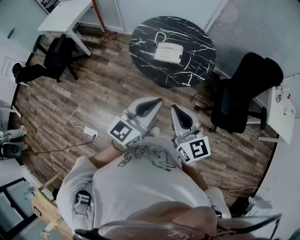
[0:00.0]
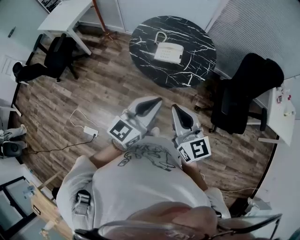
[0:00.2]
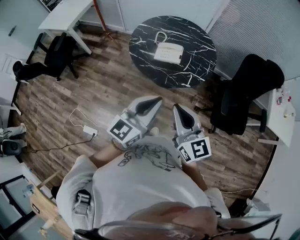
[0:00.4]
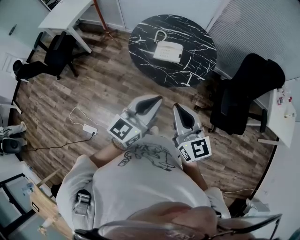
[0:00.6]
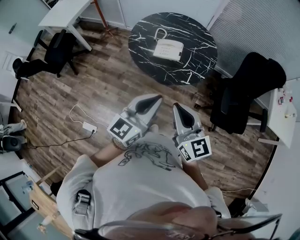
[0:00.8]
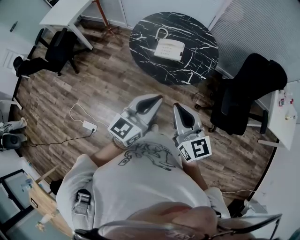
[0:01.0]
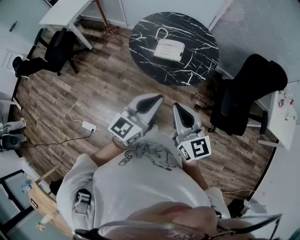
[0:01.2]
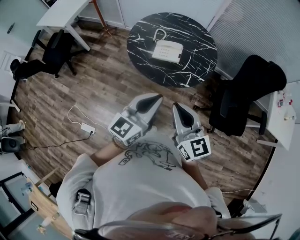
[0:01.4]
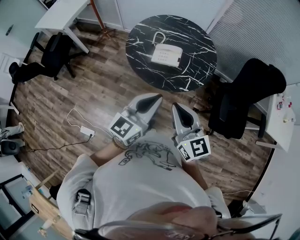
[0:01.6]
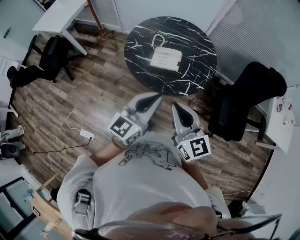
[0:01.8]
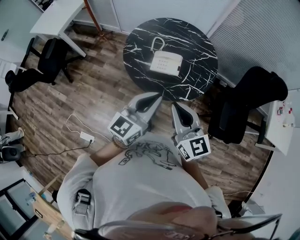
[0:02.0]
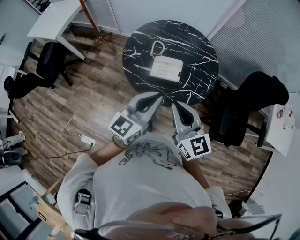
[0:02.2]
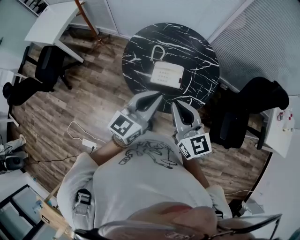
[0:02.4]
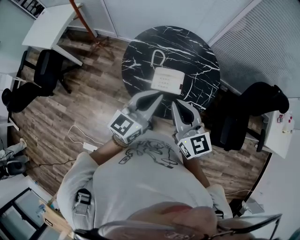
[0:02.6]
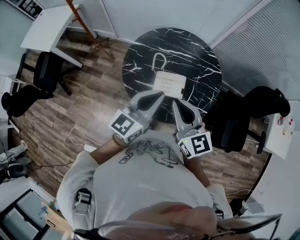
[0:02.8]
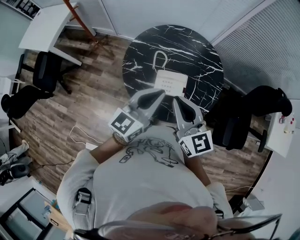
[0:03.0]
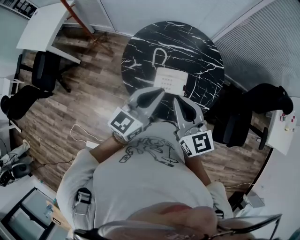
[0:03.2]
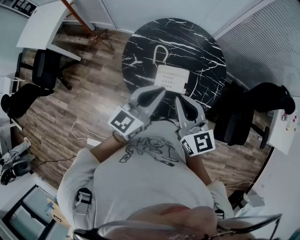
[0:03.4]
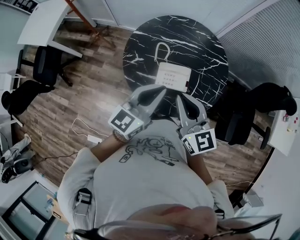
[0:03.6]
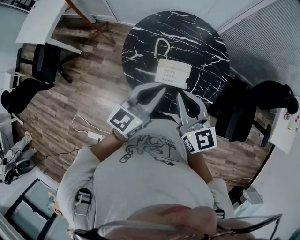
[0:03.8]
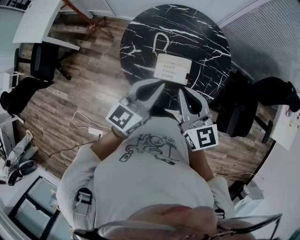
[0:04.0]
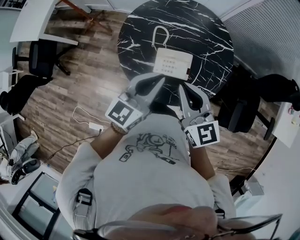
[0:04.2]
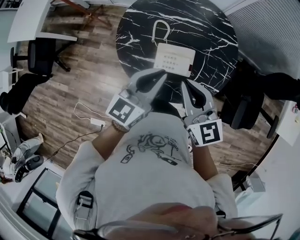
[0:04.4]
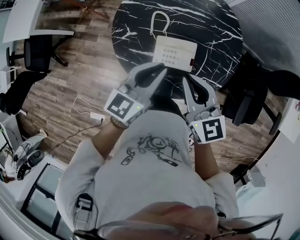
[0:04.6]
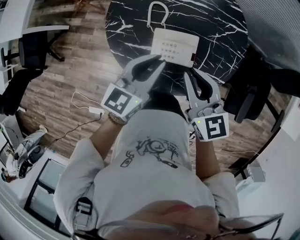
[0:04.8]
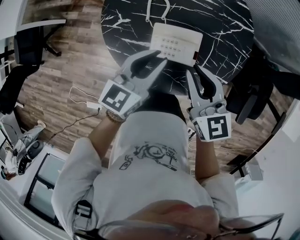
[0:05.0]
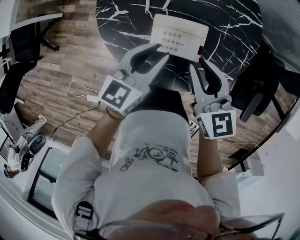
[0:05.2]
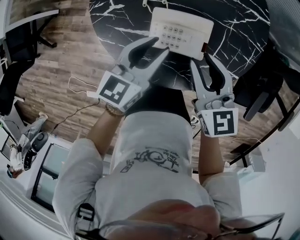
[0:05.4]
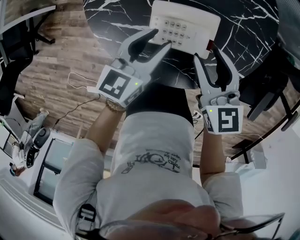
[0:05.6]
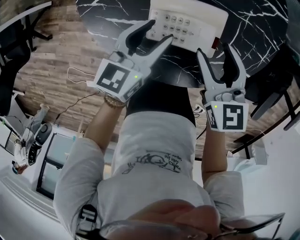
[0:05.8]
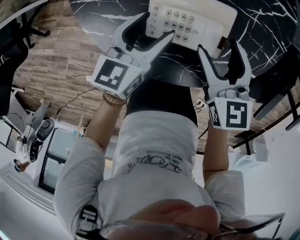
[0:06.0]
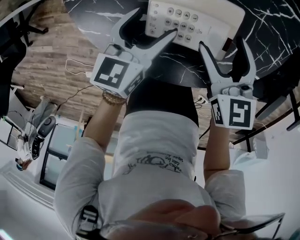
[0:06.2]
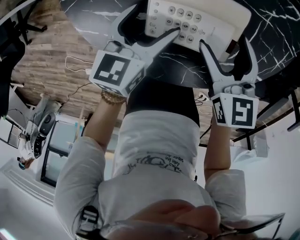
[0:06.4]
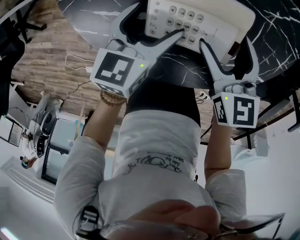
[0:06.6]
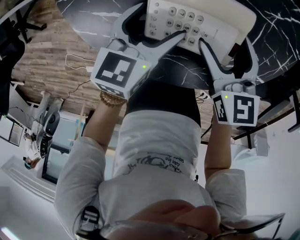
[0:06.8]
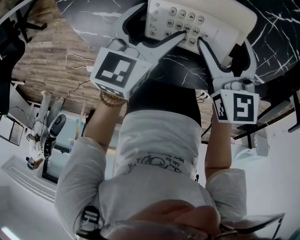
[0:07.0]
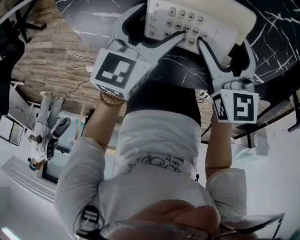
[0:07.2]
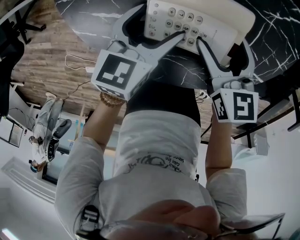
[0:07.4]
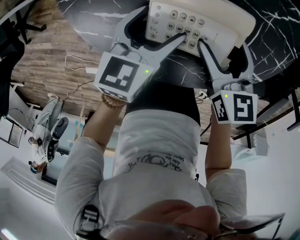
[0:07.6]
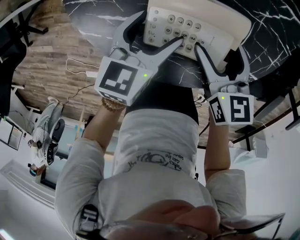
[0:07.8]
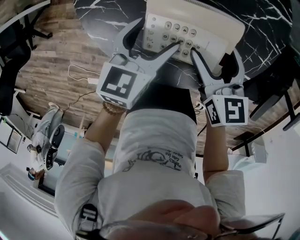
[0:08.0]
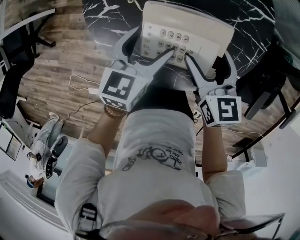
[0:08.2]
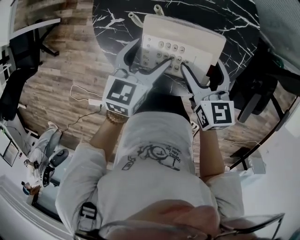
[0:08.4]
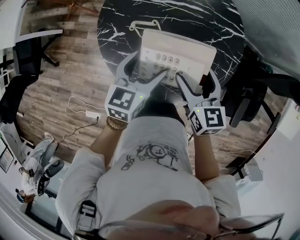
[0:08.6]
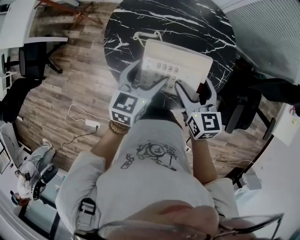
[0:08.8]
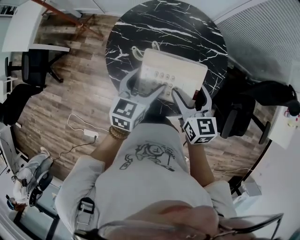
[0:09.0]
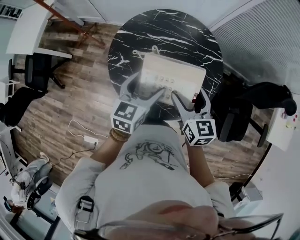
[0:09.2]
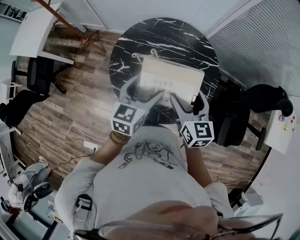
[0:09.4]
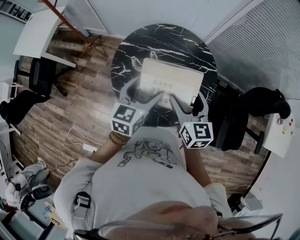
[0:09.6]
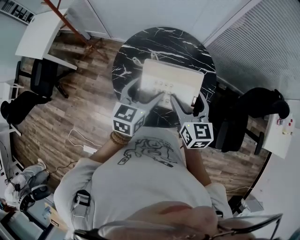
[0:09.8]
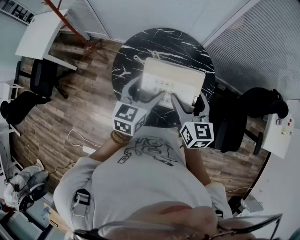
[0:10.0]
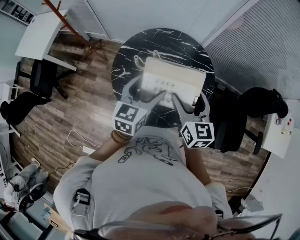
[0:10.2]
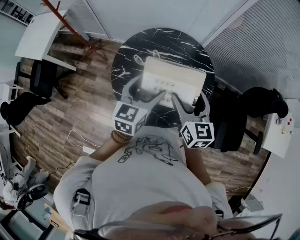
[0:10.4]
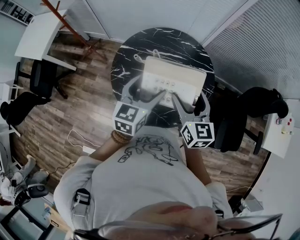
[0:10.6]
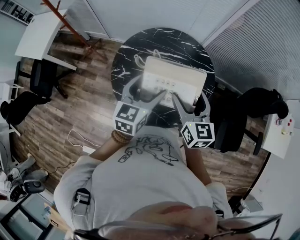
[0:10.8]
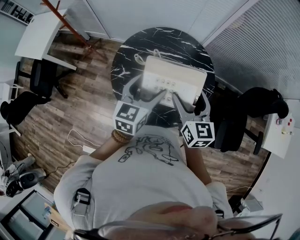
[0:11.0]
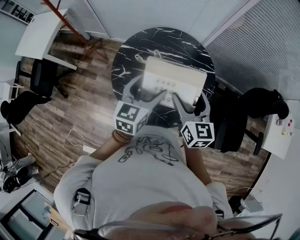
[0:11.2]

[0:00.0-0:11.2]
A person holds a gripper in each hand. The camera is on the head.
0.0 to 1.6 s: Both grippers travel together forward, about 10 cm.
1.6 to 3.2 s: Both grippers move forward, about 35 cm.
3.2 to 4.8 s: The two grippers go roughly 20 cm downward and forward.
4.8 to 6.4 s: Both grippers move downward, roughly 30 cm. The right gripper swivels approximately 20 degrees, and opens up. The left gripper changes its angle by roughly 20 degrees, and opens.
6.4 to 8.0 s: Both grippers travel together upward, roughly 5 cm.
8.0 to 9.6 s: Both grippers move upward, roughly 35 cm.
9.6 to 11.2 s: There are only small adjustments of the grippers.

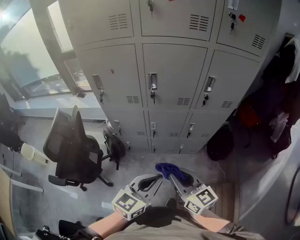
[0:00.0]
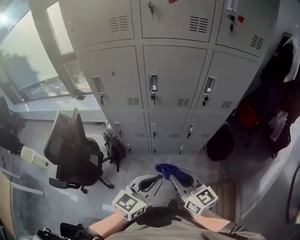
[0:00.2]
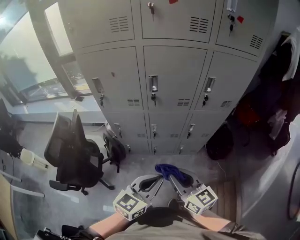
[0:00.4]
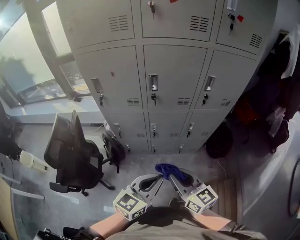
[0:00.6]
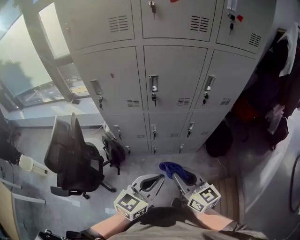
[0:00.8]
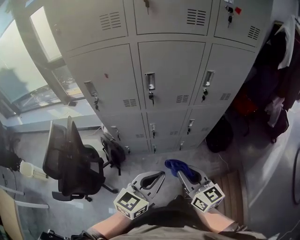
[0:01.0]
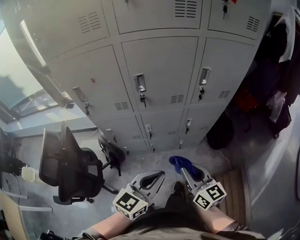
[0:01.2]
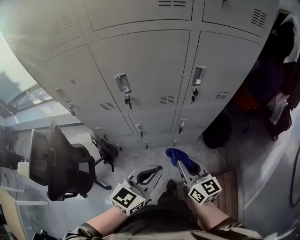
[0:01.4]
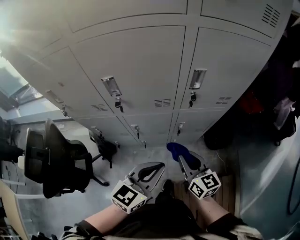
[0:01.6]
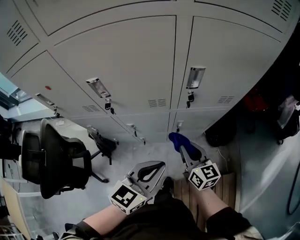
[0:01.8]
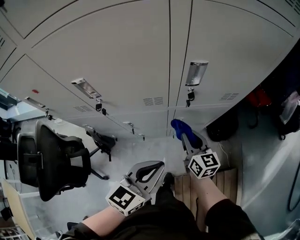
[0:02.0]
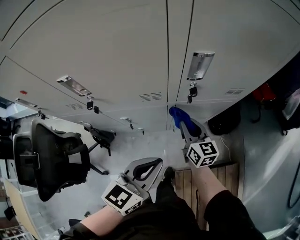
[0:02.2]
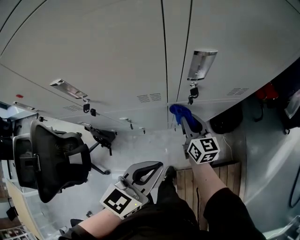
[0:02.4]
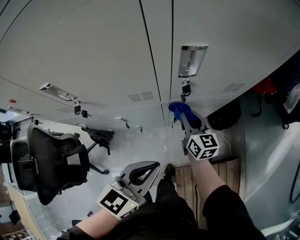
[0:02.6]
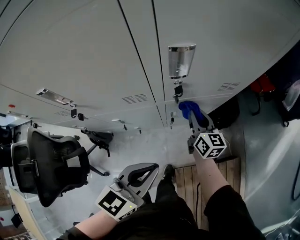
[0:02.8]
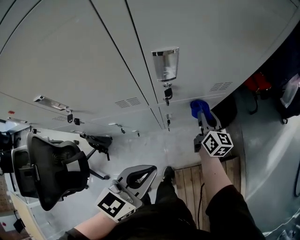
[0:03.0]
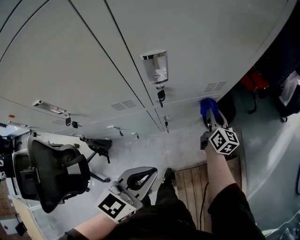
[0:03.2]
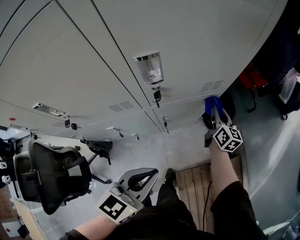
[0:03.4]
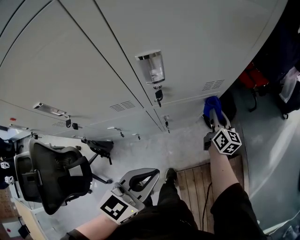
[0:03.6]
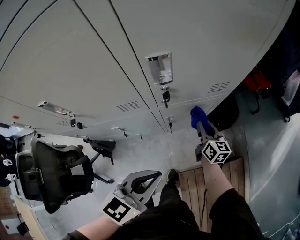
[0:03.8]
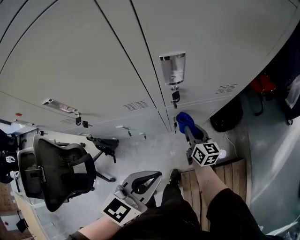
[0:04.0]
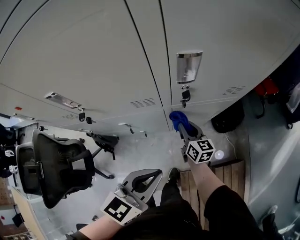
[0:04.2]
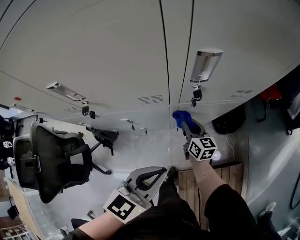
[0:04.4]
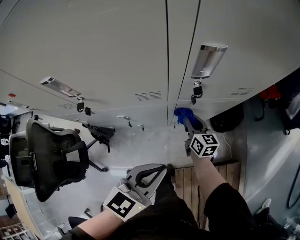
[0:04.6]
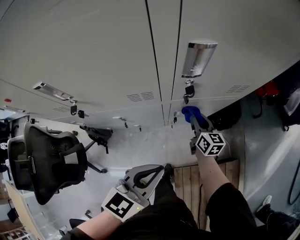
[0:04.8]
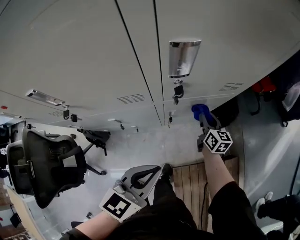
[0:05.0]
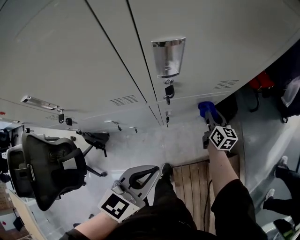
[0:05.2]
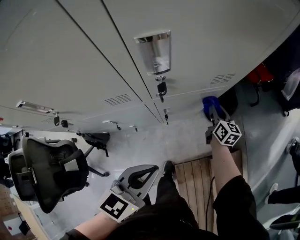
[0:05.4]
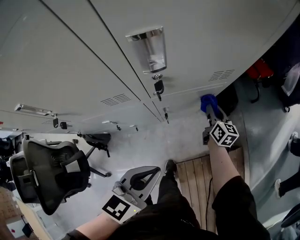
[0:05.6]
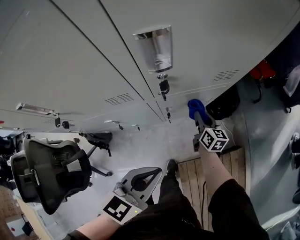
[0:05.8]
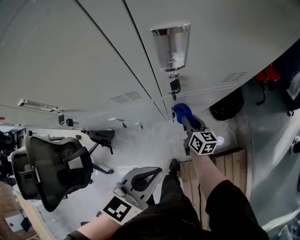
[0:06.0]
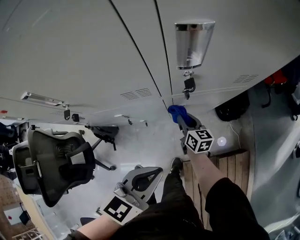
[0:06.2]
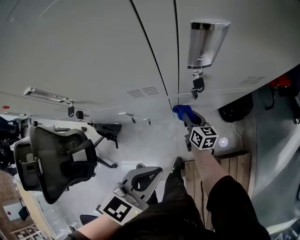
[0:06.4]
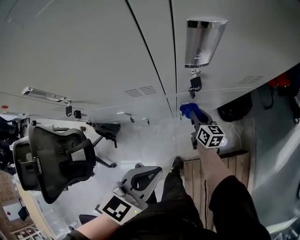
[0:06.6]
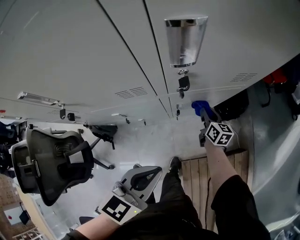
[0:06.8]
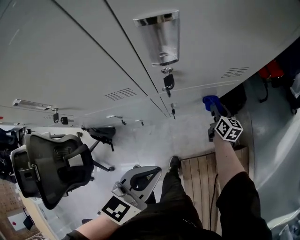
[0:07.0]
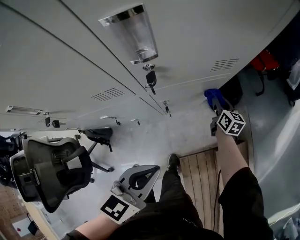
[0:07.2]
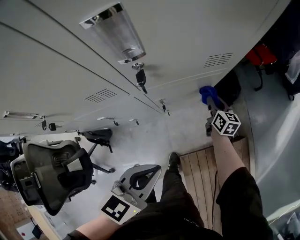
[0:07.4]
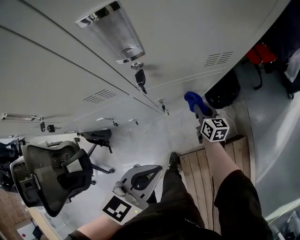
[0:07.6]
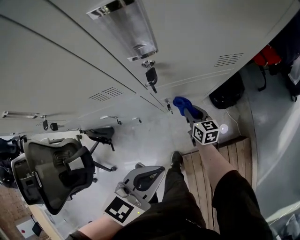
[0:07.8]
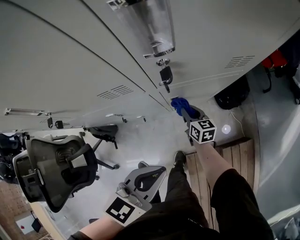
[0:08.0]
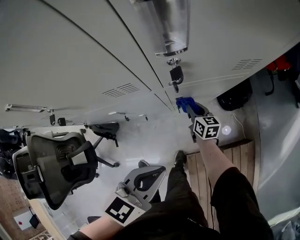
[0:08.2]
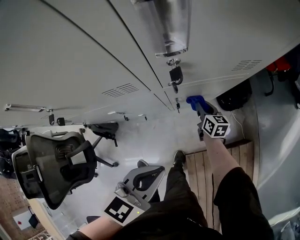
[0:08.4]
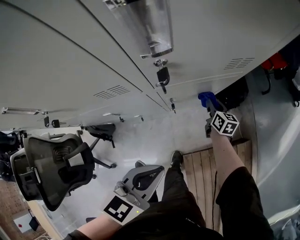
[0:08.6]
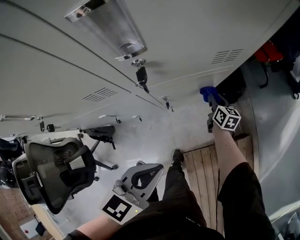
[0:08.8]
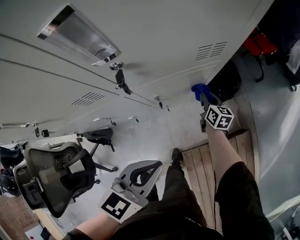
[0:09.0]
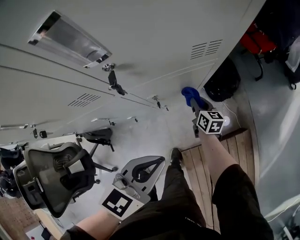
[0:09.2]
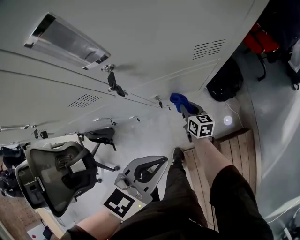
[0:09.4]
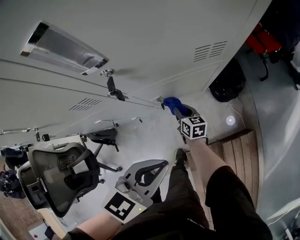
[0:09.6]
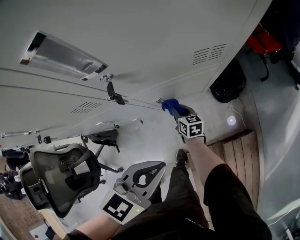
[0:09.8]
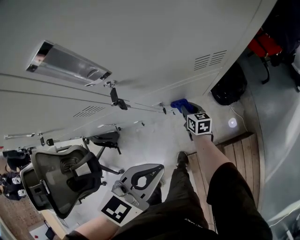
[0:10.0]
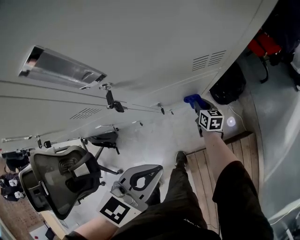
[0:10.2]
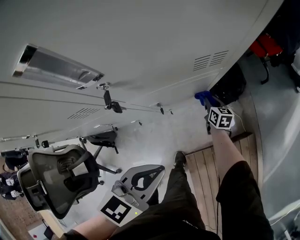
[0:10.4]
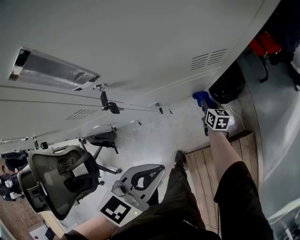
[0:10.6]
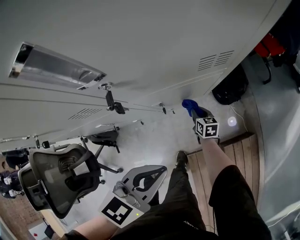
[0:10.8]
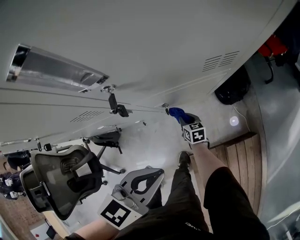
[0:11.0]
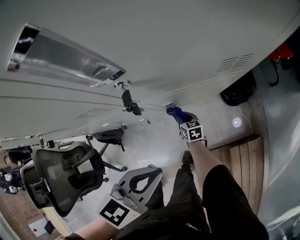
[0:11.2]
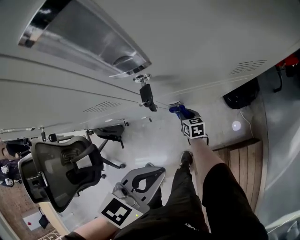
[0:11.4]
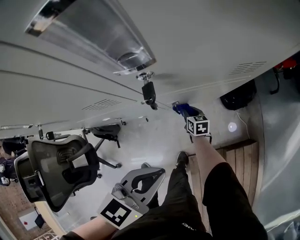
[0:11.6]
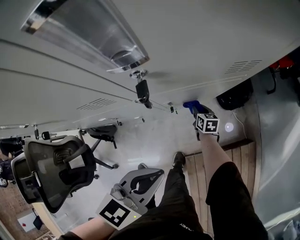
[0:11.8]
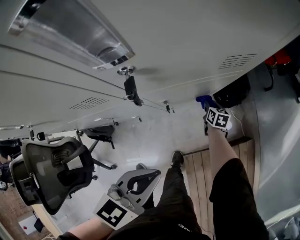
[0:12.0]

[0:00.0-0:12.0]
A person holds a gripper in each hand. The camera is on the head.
0.0 to 1.6 s: The right gripper goes roughly 25 cm forward, to the right and downward, while the left gripper moves forward and to the right, about 20 cm.
1.6 to 3.0 s: The left gripper goes some 10 cm forward and downward; the right gripper travels forward, to the right and downward by roughly 30 cm, and rotates approximately 20 degrees.
3.0 to 4.4 s: The right gripper travels to the left, downward and backward by some 15 cm.
4.4 to 6.0 s: The right gripper shifts some 5 cm downward, and moves some 20 cm to the right and comes back.
6.0 to 7.6 s: The right gripper swings left and right, approximately 25 cm each way, with 2 reversals.
7.6 to 9.0 s: The right gripper travels to the left and back again, roughly 10 cm each way.
9.0 to 10.4 s: The right gripper moves downward, about 5 cm, and goes to the left and returns, roughly 15 cm each way.
10.4 to 12.0 s: The right gripper is displaced downward by about 5 cm, and travels to the left and back again, approximately 20 cm each way.

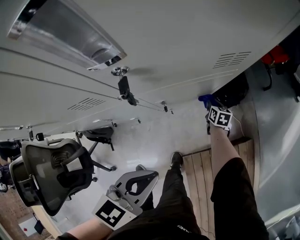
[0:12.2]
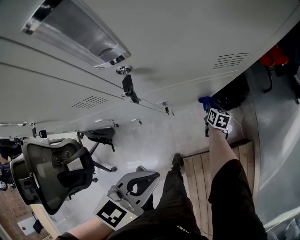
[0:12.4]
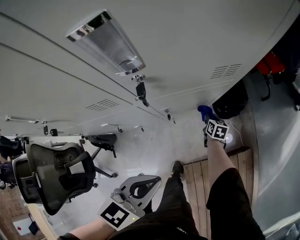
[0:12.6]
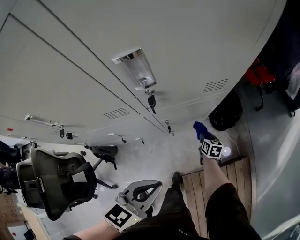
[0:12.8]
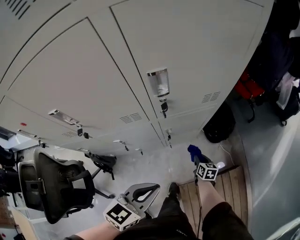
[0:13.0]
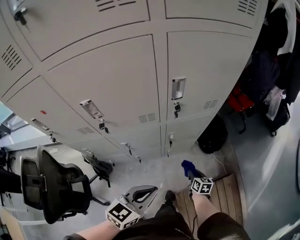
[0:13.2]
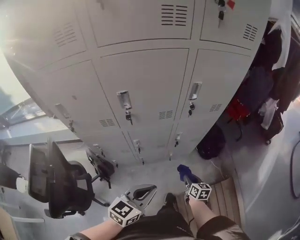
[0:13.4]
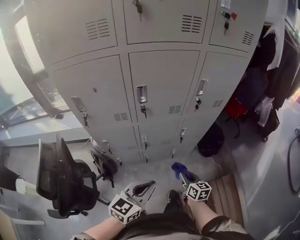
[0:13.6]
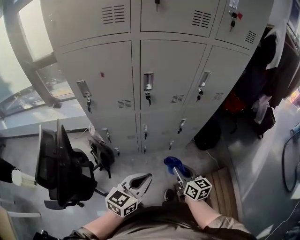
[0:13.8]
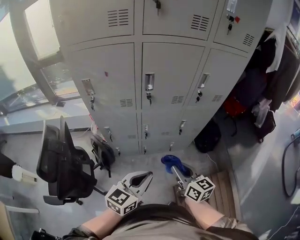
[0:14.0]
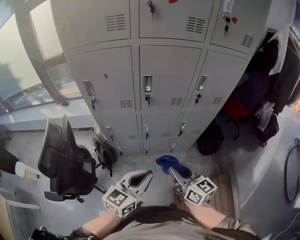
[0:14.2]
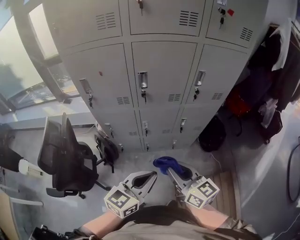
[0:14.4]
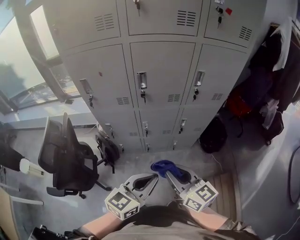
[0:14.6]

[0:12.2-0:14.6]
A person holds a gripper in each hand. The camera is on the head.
12.2 to 13.4 s: The right gripper travels backward and upward by roughly 40 cm. Meanwhile the left gripper shifts approximately 25 cm backward, upward and to the left.
13.4 to 14.6 s: The left gripper is displaced backward and upward by approximately 15 cm, while the right gripper heads upward, backward and to the left, covering about 40 cm, and swivels roughly 40 degrees.
